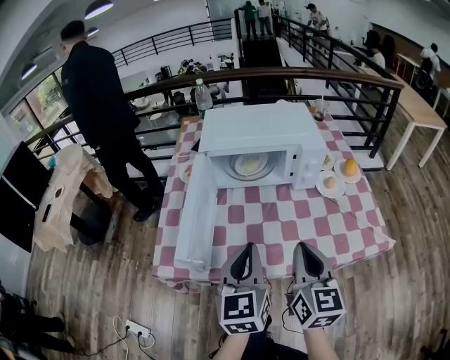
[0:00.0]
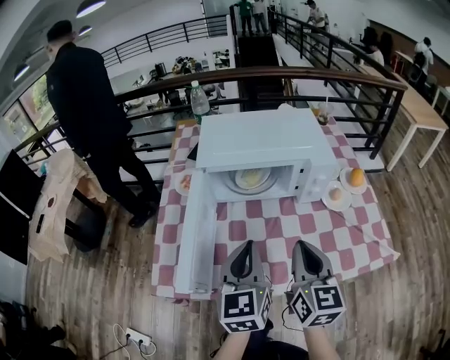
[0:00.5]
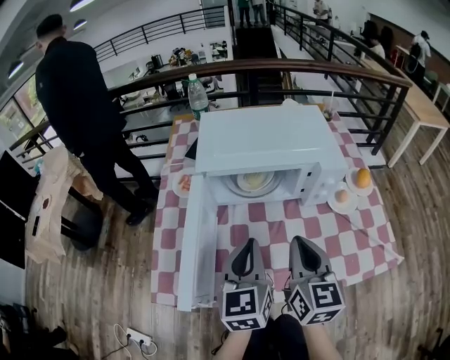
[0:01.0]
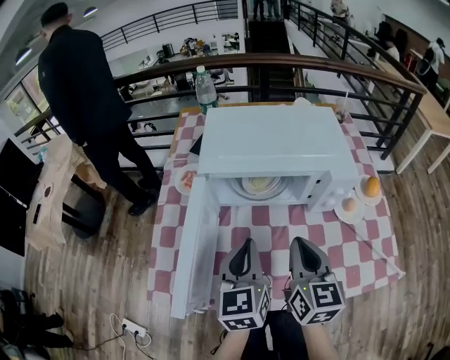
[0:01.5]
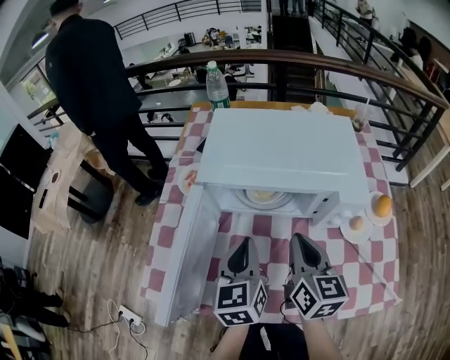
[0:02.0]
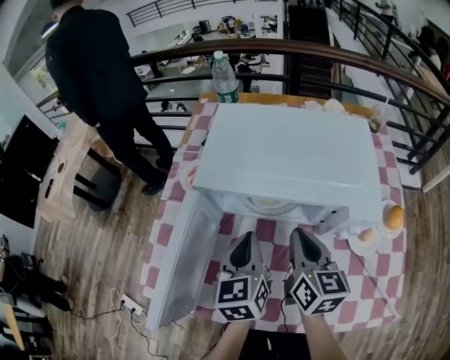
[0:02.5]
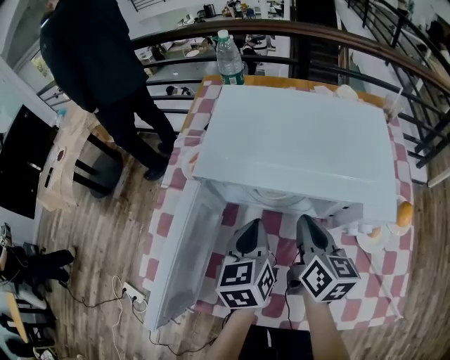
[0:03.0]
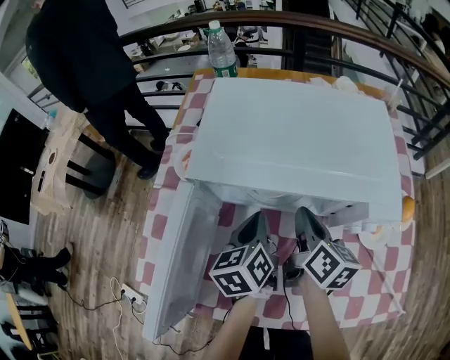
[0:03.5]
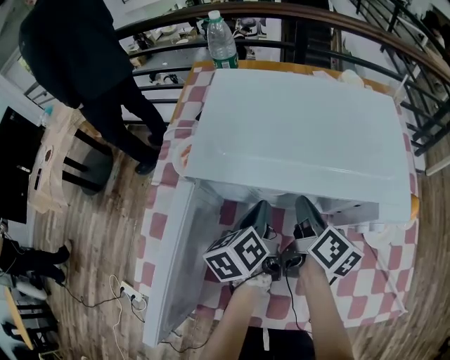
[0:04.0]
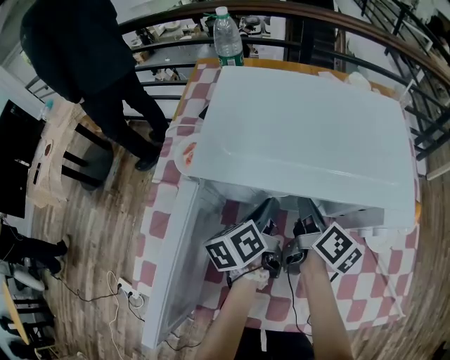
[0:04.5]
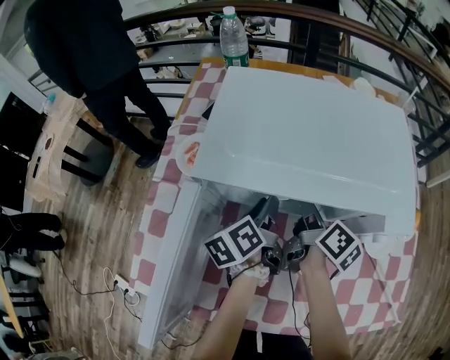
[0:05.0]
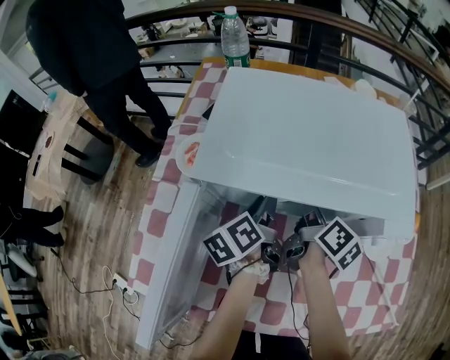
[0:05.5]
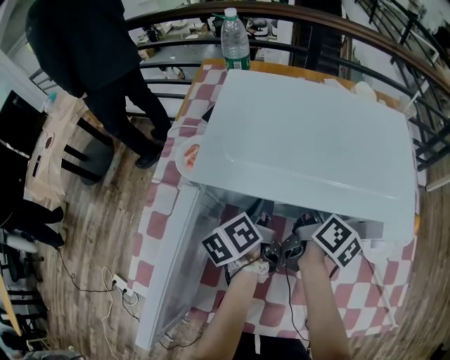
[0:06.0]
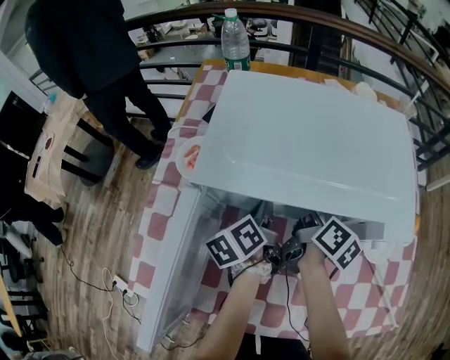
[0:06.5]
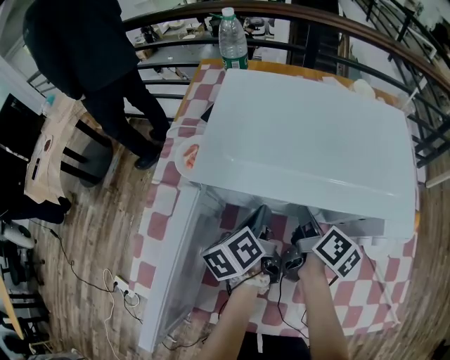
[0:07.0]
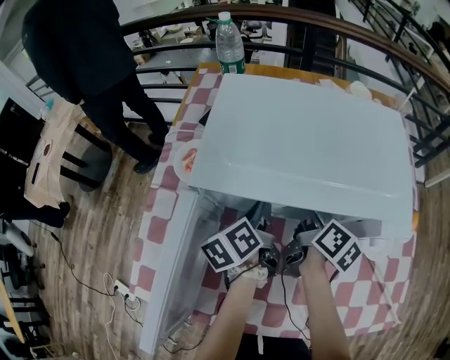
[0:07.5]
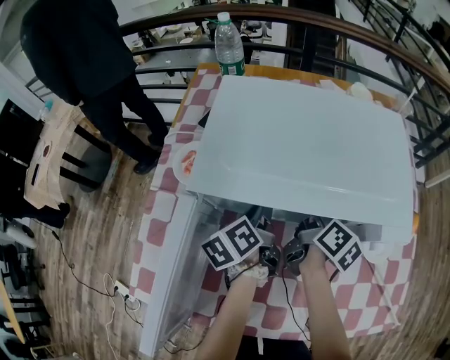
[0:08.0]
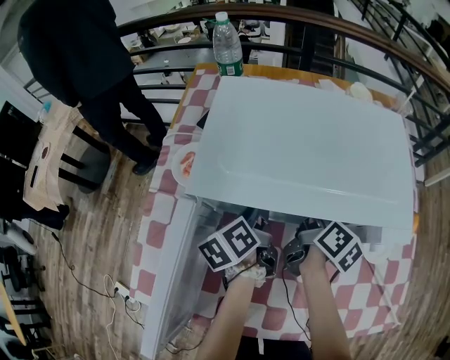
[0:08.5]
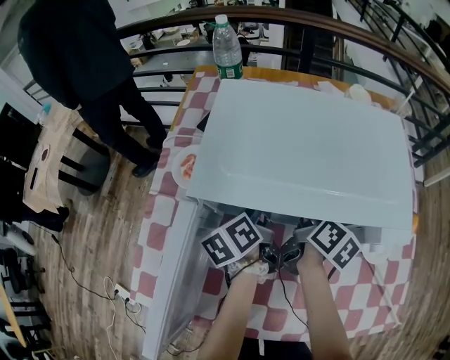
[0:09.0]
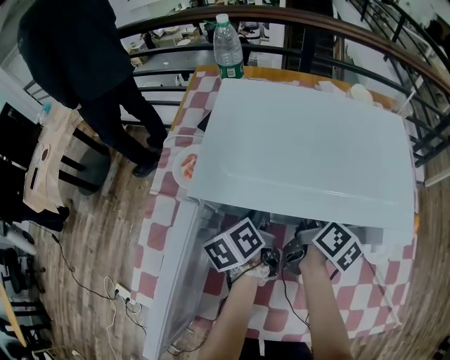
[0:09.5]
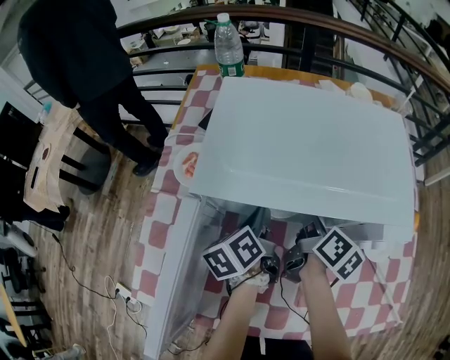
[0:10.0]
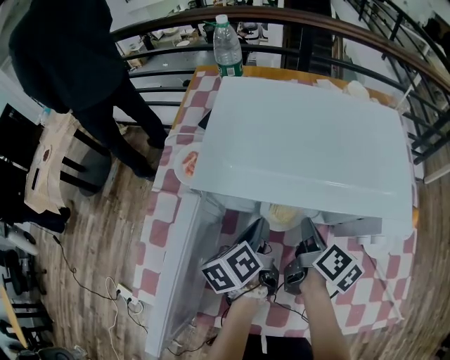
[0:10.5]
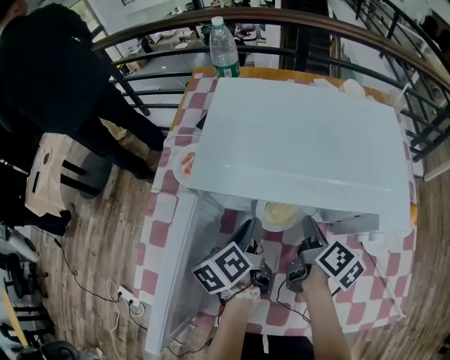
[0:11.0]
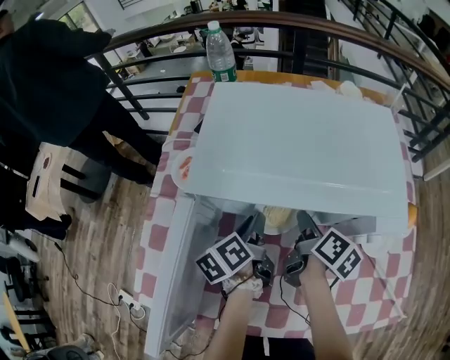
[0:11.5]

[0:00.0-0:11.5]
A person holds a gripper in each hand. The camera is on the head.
0:00.0 to 0:02.0: Both grippers travel together forward, some 20 cm.
0:02.0 to 0:04.0: The two grippers go approximately 15 cm forward and downward. The right gripper changes its angle by about 40 degrees. Meanwhile the left gripper swivels approximately 30 degrees.
0:04.0 to 0:09.5: The grippers make only small movements.
0:09.5 to 0:11.5: The right gripper opens; the left gripper opens its fingers.

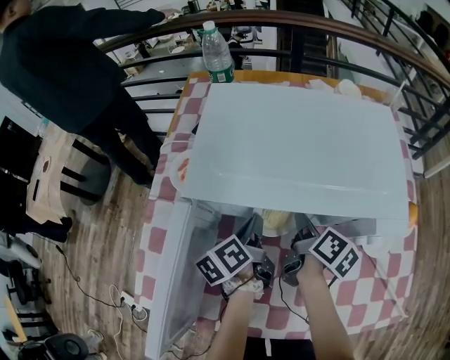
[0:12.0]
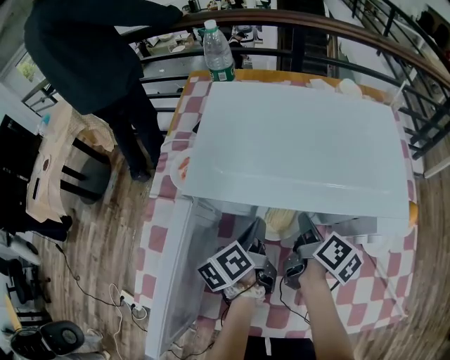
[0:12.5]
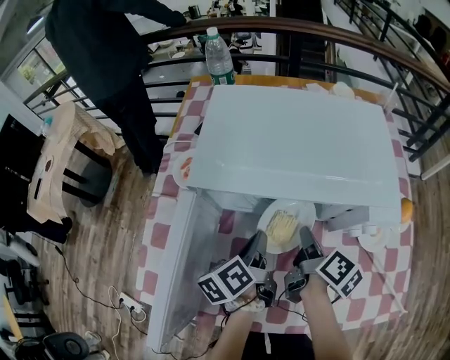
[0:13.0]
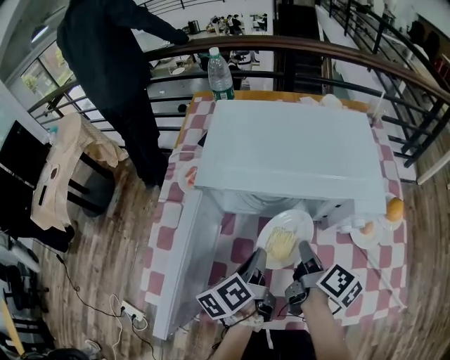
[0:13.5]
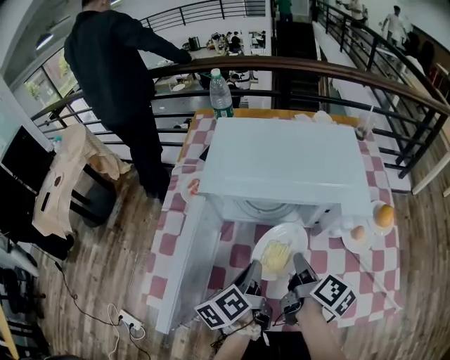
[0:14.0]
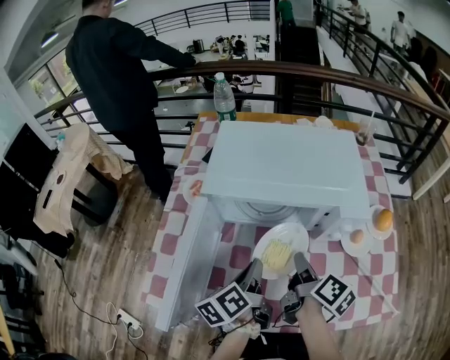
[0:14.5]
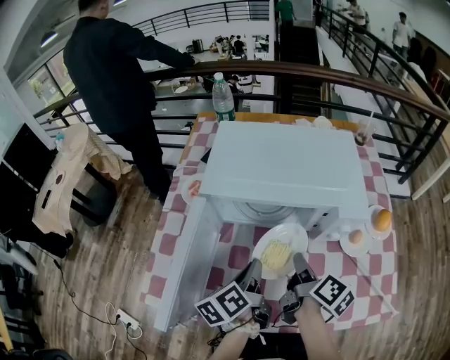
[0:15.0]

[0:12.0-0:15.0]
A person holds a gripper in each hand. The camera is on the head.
0:12.0 to 0:13.5: Both grippers travel together backward and upward, about 15 cm.
0:13.5 to 0:15.0: There are only small adjustments of the grippers.

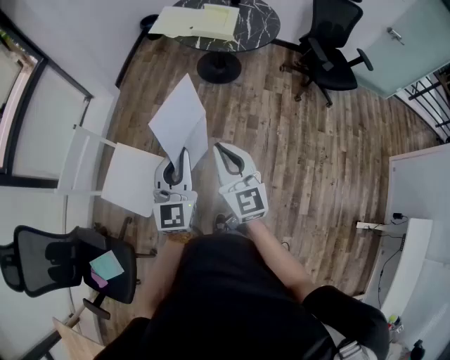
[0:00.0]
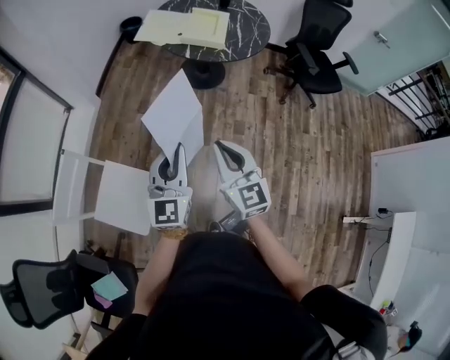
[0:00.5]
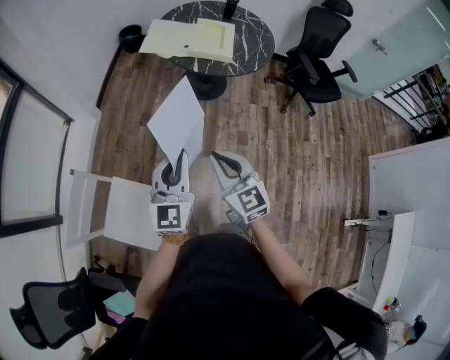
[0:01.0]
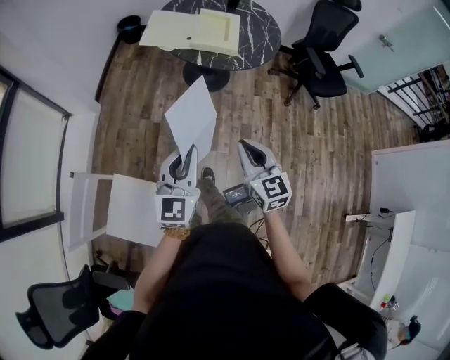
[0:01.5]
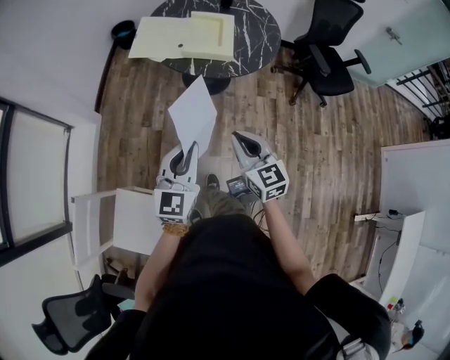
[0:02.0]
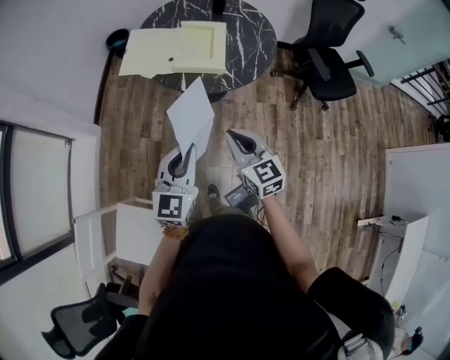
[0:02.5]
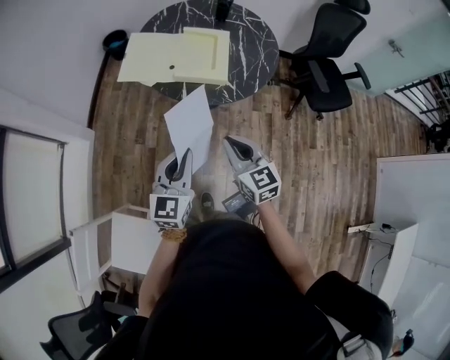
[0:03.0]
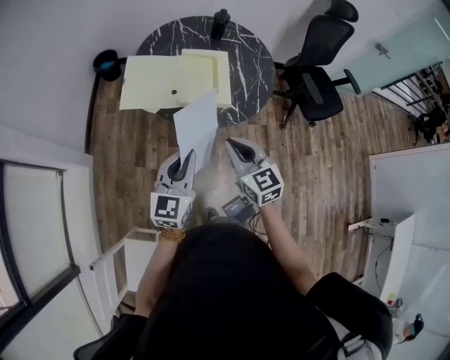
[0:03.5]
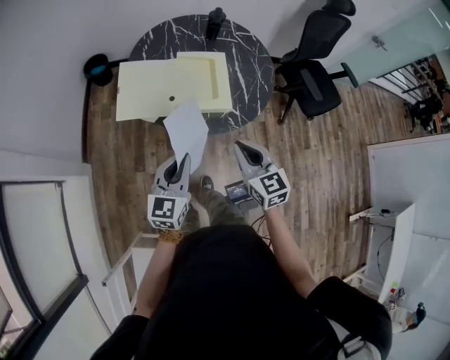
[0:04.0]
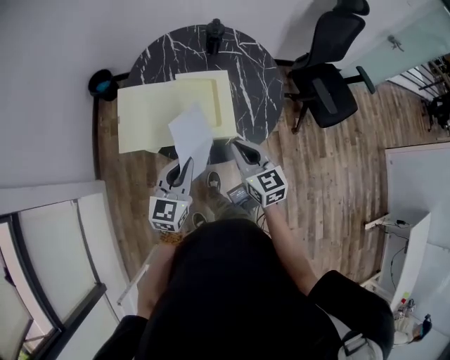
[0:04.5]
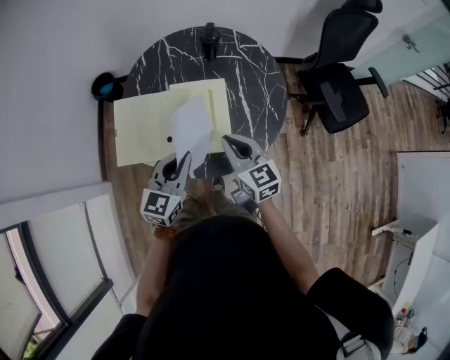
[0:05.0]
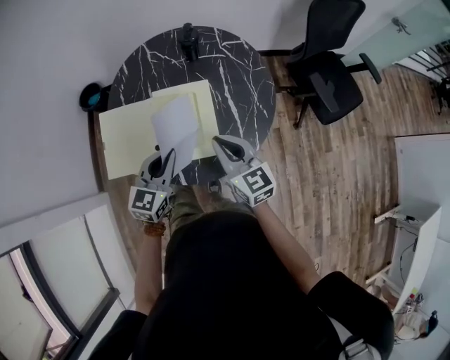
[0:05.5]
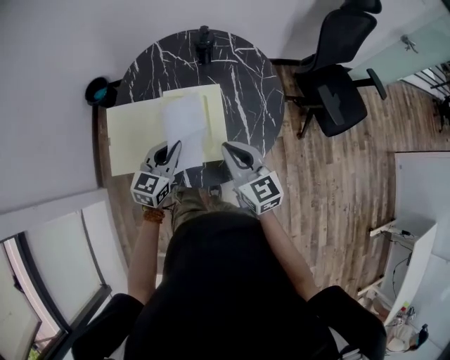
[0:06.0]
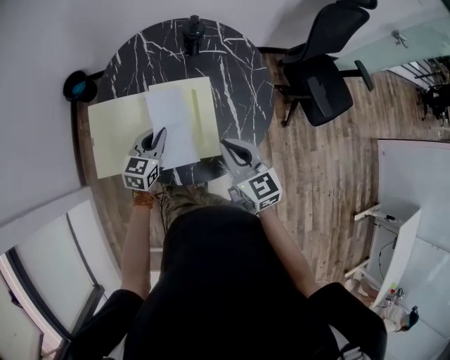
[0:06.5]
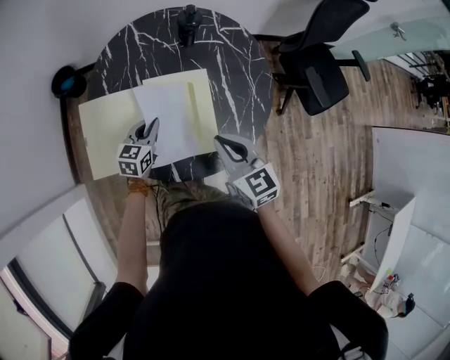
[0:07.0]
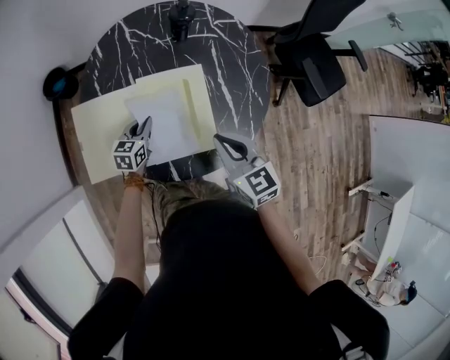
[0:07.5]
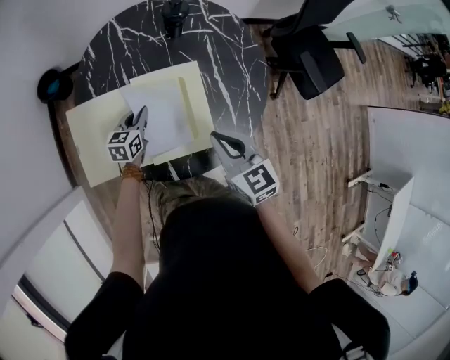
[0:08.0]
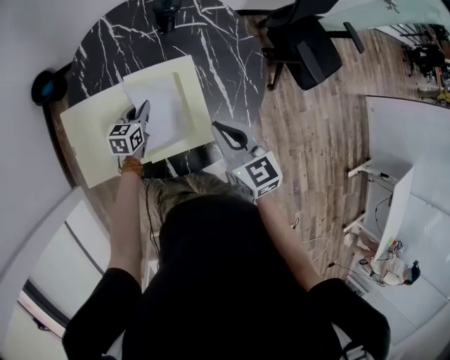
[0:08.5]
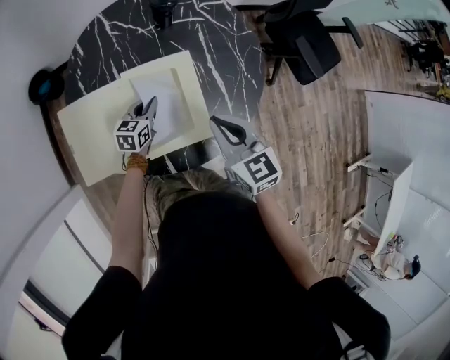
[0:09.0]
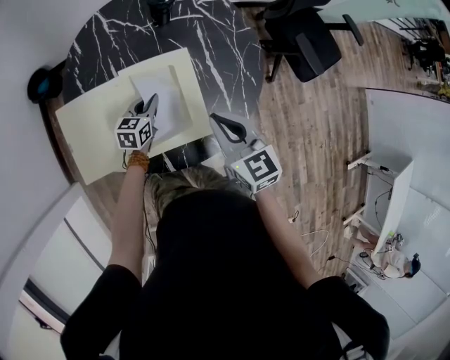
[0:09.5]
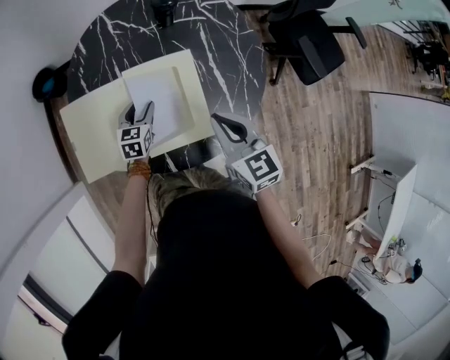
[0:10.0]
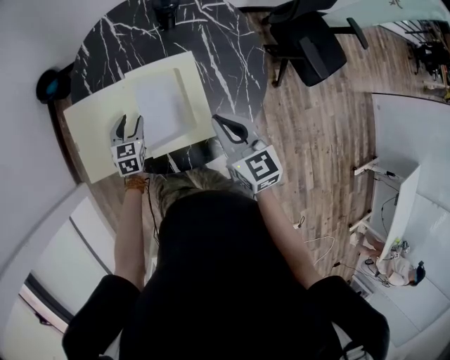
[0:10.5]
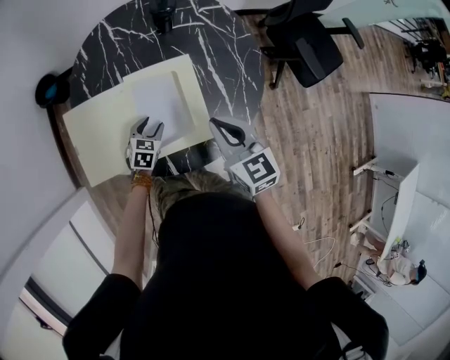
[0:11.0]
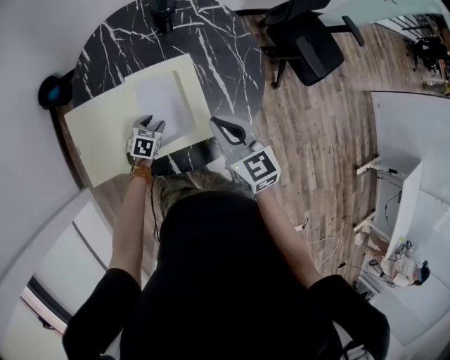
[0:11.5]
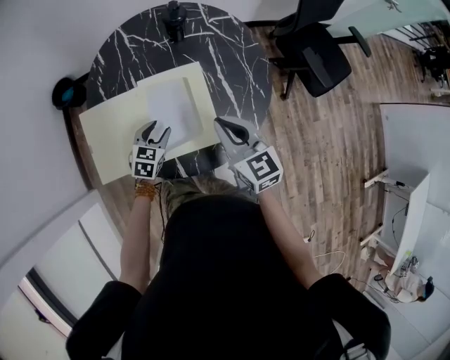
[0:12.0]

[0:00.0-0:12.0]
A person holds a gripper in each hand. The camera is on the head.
0:00.0 to 0:02.0: Both grippers travel together forward, about 35 cm.
0:02.0 to 0:04.0: The grippers both shift forward by some 30 cm.
0:04.0 to 0:06.0: The grippers both shift forward by some 30 cm.
0:06.0 to 0:08.0: The left gripper travels downward and forward by approximately 25 cm, and turns by about 20 degrees. The right gripper moves downward, roughly 5 cm.
0:08.0 to 0:10.0: The left gripper opens up.
0:10.0 to 0:12.0: The left gripper shifts some 5 cm backward.

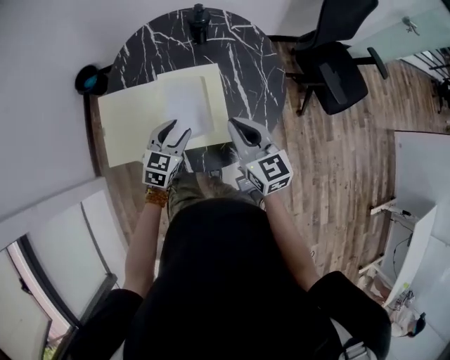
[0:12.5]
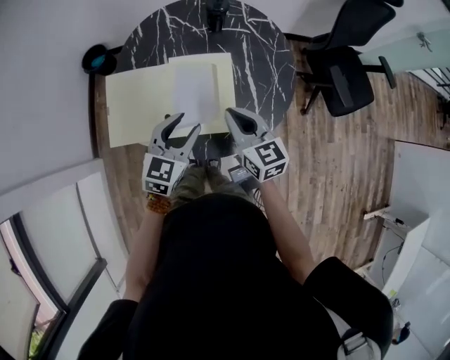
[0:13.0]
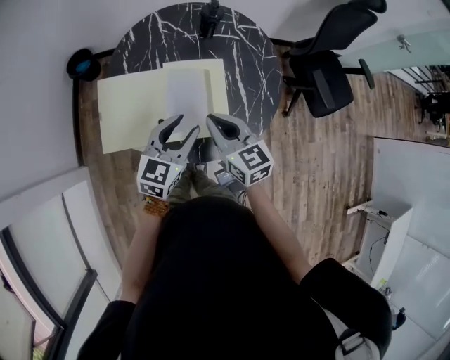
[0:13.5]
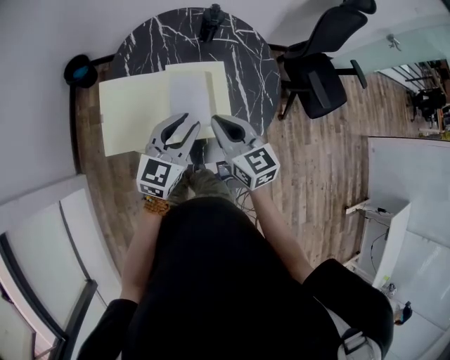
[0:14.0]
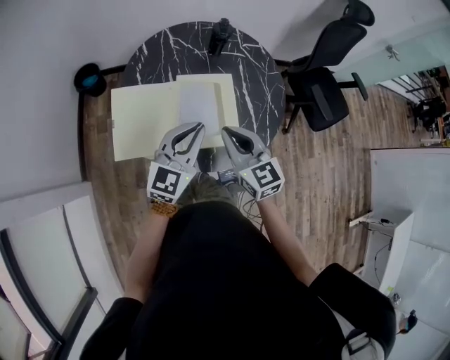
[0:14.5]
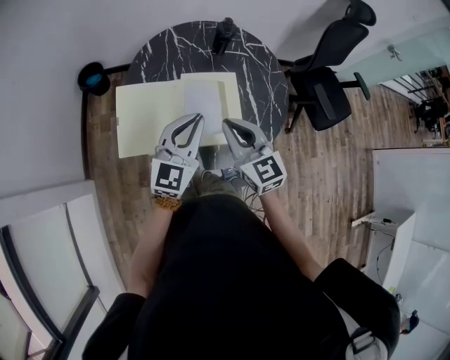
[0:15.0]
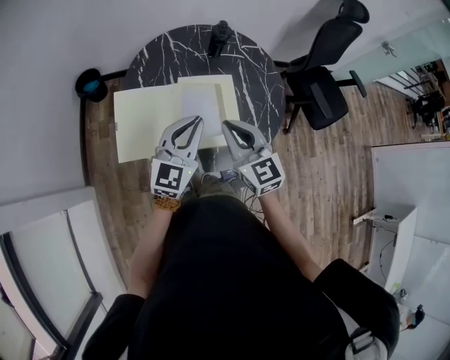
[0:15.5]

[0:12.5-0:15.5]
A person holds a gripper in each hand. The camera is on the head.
0:12.5 to 0:14.0: The right gripper is displaced to the left by about 10 cm; the left gripper is displaced upward by about 15 cm, and turns by approximately 20 degrees.
0:14.0 to 0:15.5: The left gripper ends up about 5 cm from where it was, and closes its fingers.
